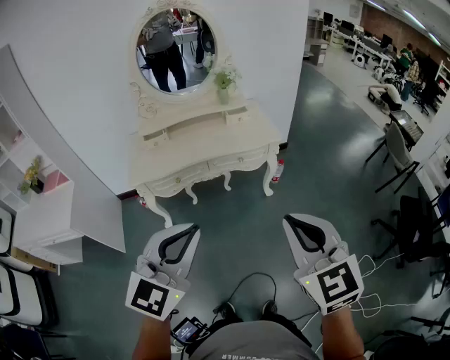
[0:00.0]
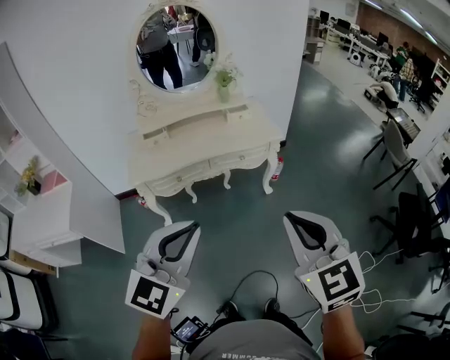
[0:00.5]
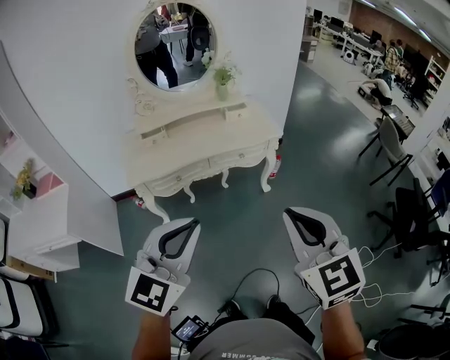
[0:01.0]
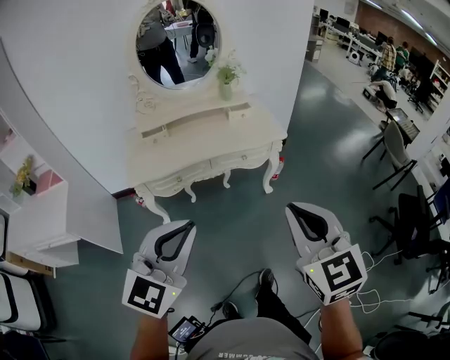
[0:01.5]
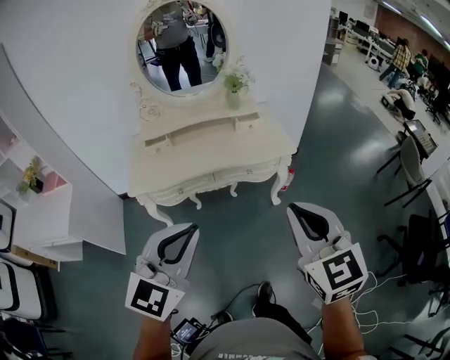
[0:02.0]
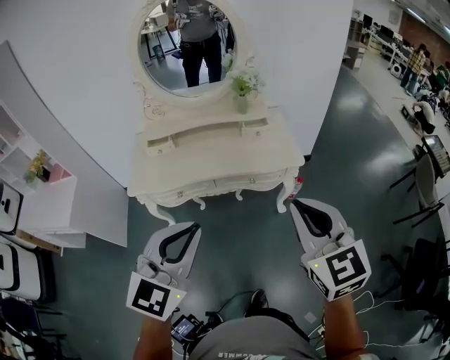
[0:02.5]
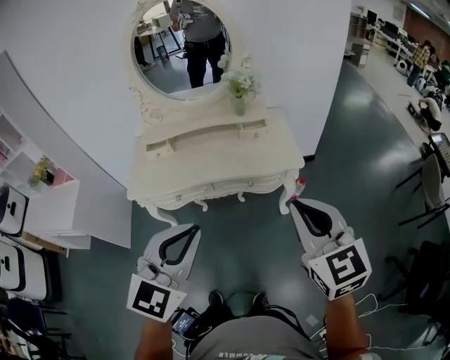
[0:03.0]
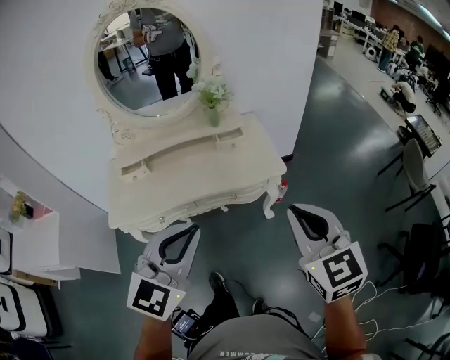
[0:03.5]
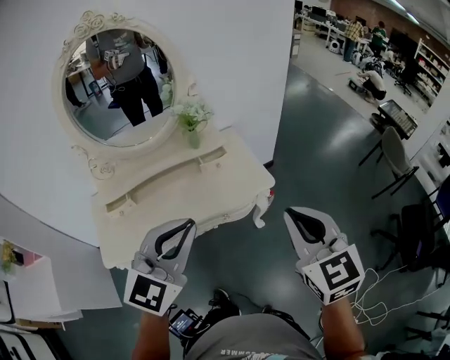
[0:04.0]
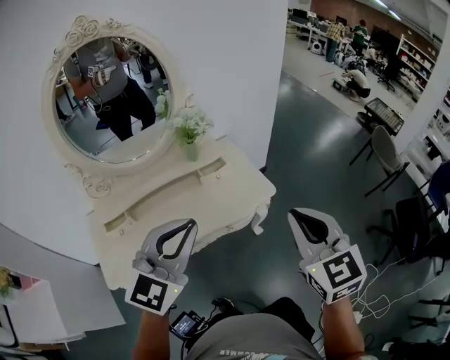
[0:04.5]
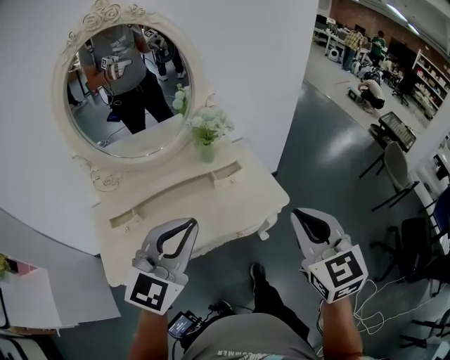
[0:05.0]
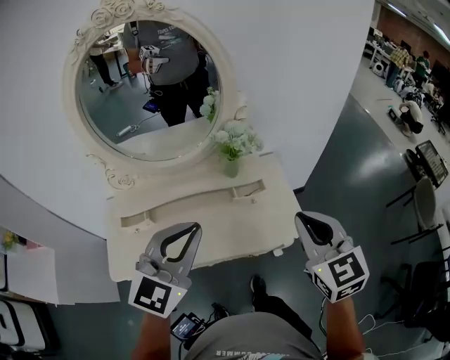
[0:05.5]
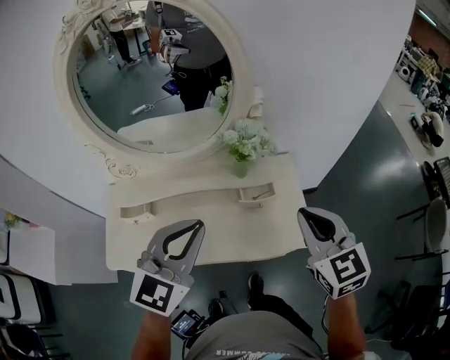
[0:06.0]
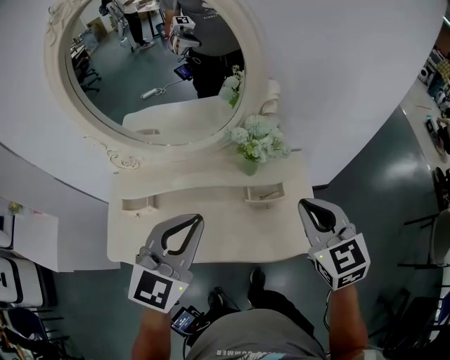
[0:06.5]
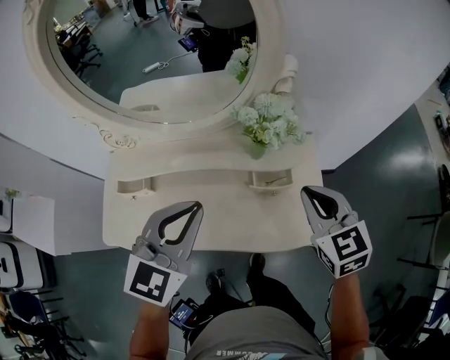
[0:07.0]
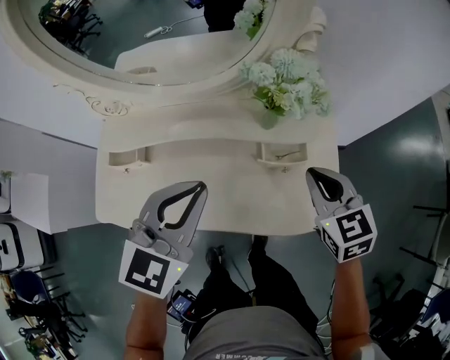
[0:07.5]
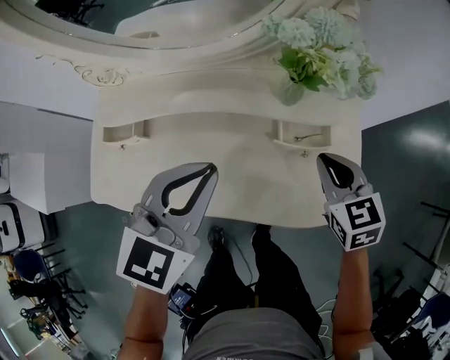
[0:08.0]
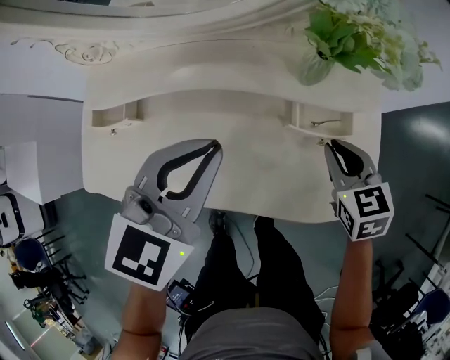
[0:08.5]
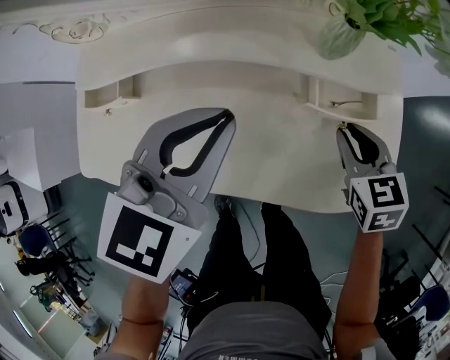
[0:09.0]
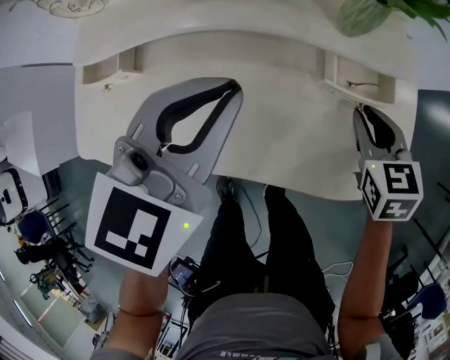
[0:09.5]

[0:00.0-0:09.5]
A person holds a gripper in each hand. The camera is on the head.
0:00.0 to 0:02.0: The grippers both shift forward by about 15 cm.
0:02.0 to 0:04.0: Both grippers move forward, some 25 cm.
0:04.0 to 0:05.5: The right gripper shifts roughly 20 cm forward; the left gripper shifts some 20 cm forward and to the left.
0:05.5 to 0:07.5: Both grippers travel together downward and forward, roughly 25 cm. The right gripper swivels about 20 degrees.
0:07.5 to 0:09.5: Both grippers travel together downward, approximately 15 cm.

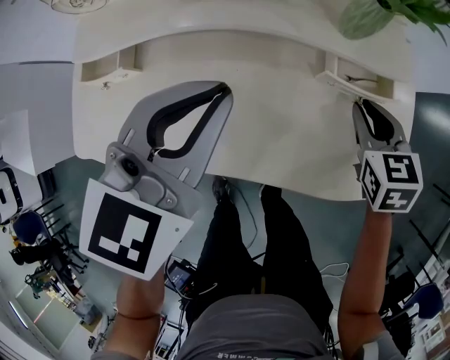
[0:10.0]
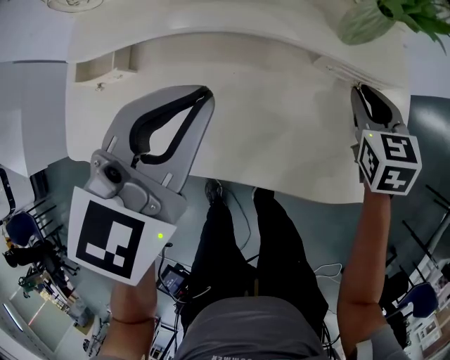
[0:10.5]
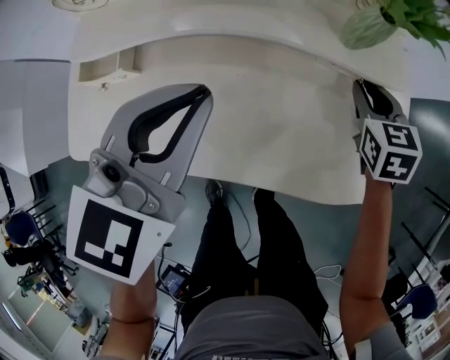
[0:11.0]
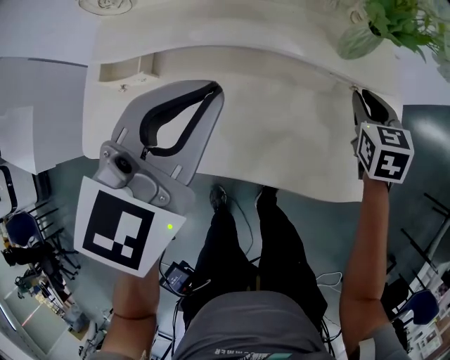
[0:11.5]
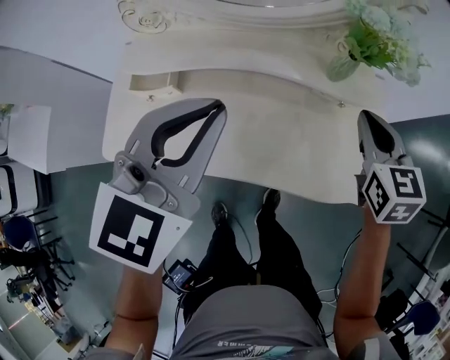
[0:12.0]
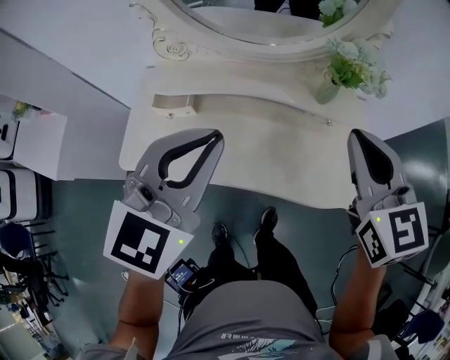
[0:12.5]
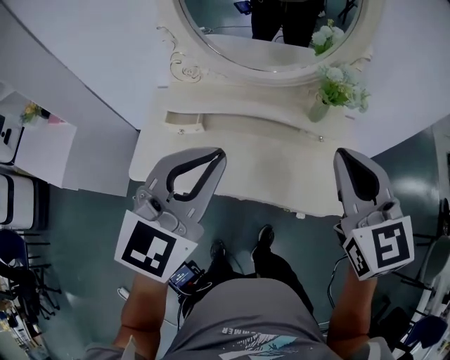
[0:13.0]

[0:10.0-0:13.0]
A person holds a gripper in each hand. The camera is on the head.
0:10.0 to 0:11.5: The left gripper goes about 5 cm upward. Meanwhile the right gripper changes place by approximately 5 cm.
0:11.5 to 0:13.0: The right gripper moves upward and backward, about 40 cm, and turns by some 30 degrees. The left gripper moves upward and backward, approximately 25 cm.

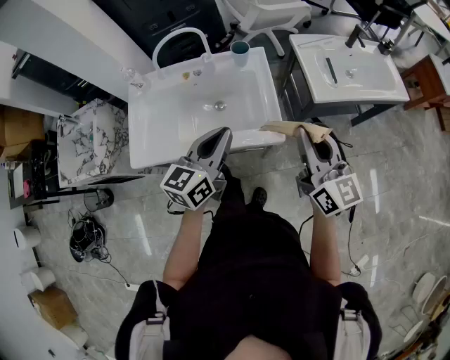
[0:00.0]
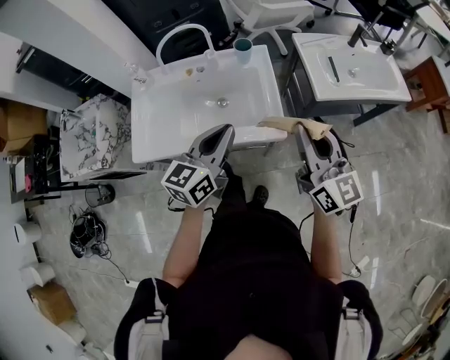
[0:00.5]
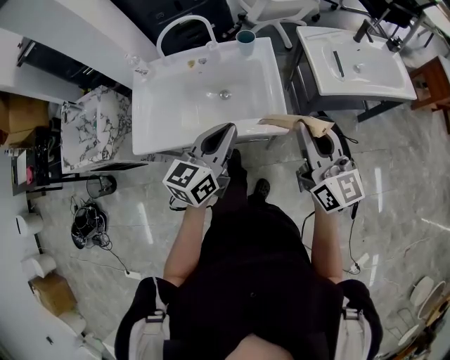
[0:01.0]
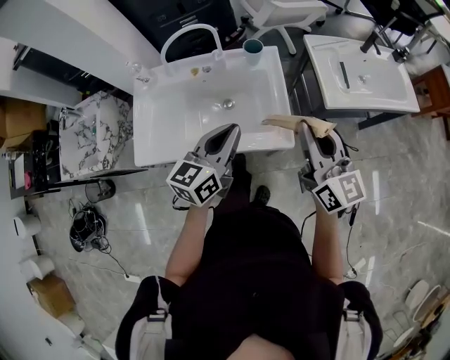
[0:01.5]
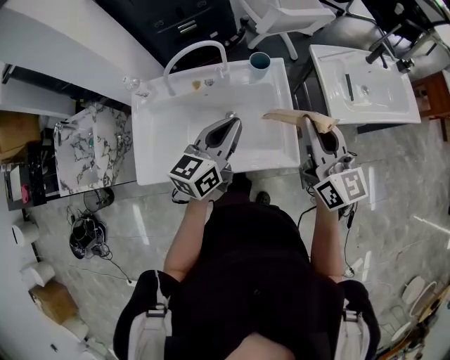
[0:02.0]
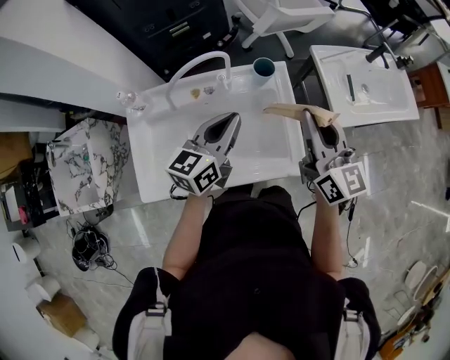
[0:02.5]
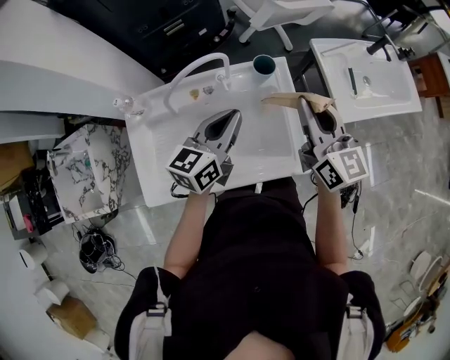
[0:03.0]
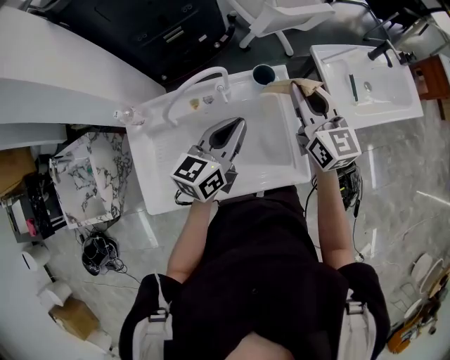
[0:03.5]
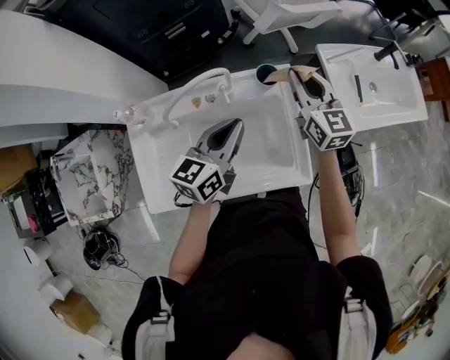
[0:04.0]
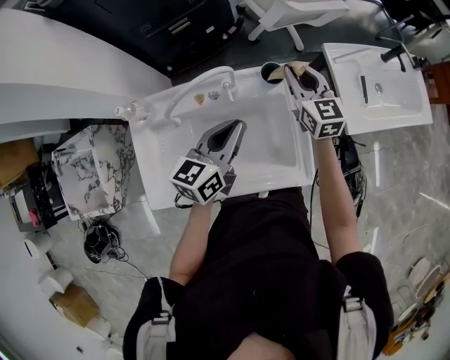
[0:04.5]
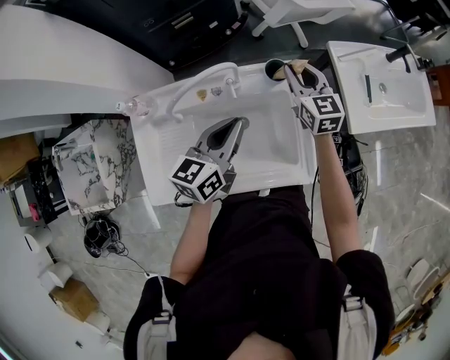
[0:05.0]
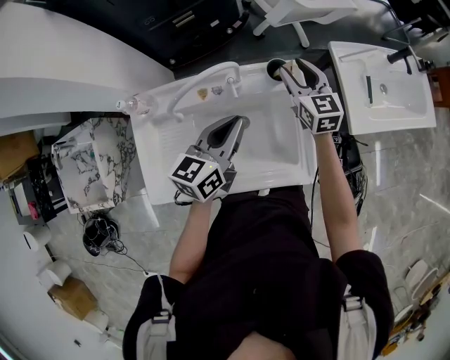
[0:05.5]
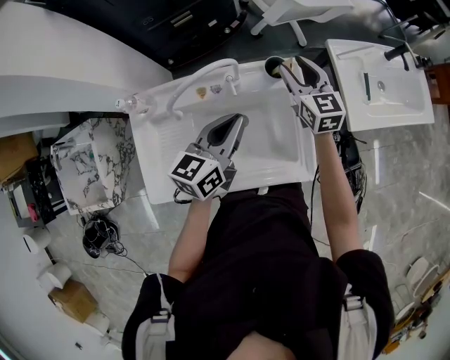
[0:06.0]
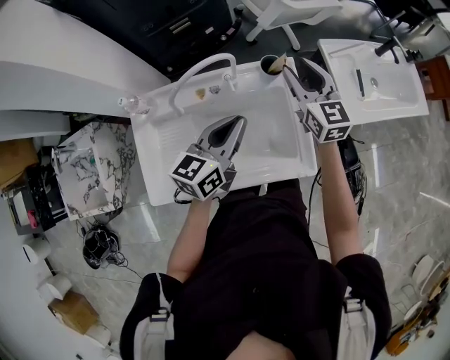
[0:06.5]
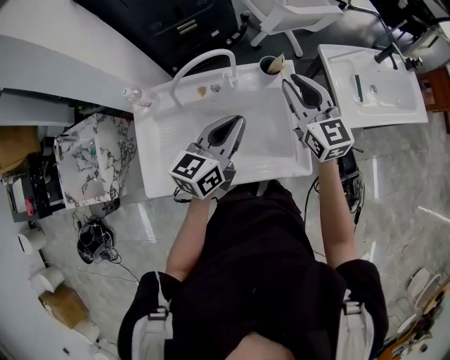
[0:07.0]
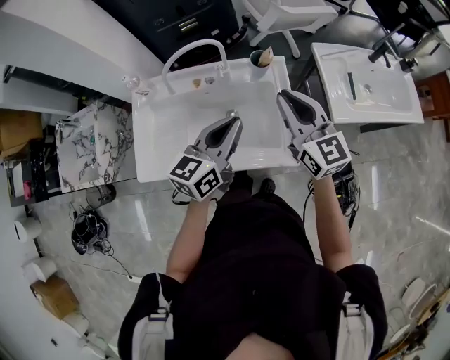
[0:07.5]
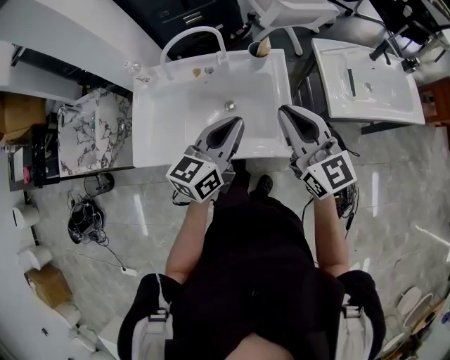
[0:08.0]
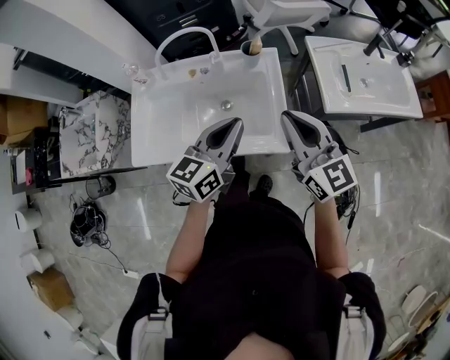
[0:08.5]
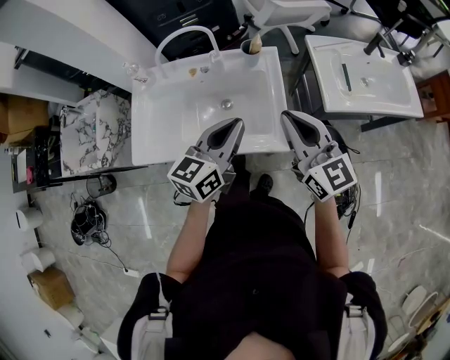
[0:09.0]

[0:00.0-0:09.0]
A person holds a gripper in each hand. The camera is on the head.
0:00.0 to 0:02.0: The right gripper goes approximately 15 cm forward and to the left. The left gripper shifts about 15 cm forward.
0:02.0 to 0:04.5: The right gripper moves forward and downward, roughly 25 cm, and changes its angle by some 20 degrees, while the left gripper travels forward by roughly 10 cm.
0:04.5 to 0:07.0: The left gripper moves roughly 5 cm; the right gripper is displaced backward and upward by some 15 cm, and opens, then closes again.
0:07.0 to 0:09.0: The left gripper heads backward and to the right, covering about 15 cm. Meanwhile the right gripper travels backward by approximately 20 cm.

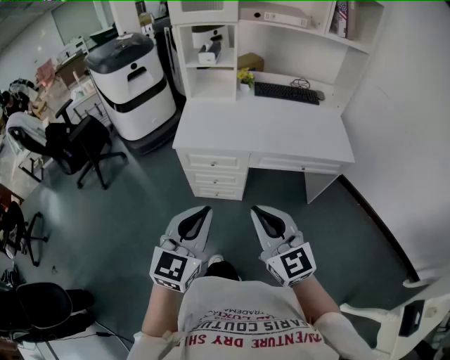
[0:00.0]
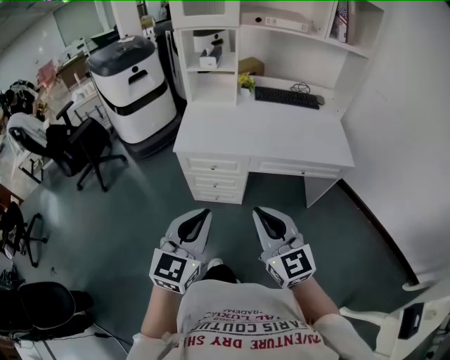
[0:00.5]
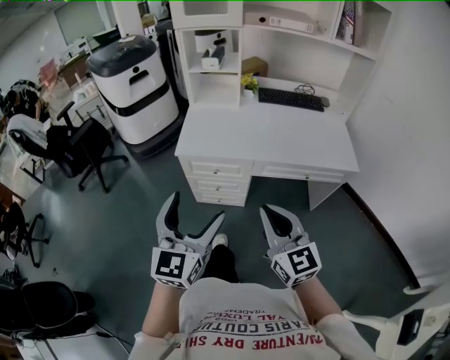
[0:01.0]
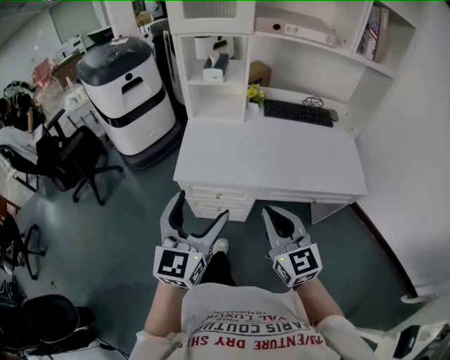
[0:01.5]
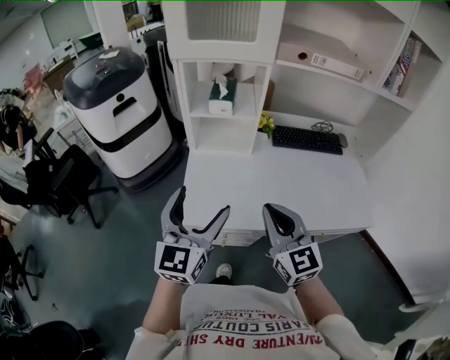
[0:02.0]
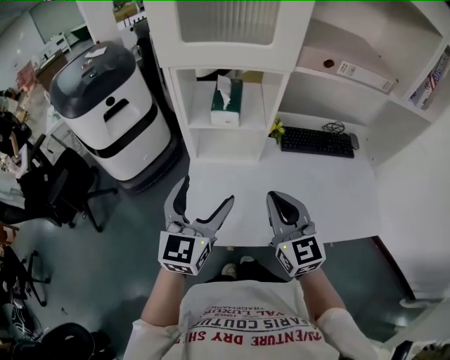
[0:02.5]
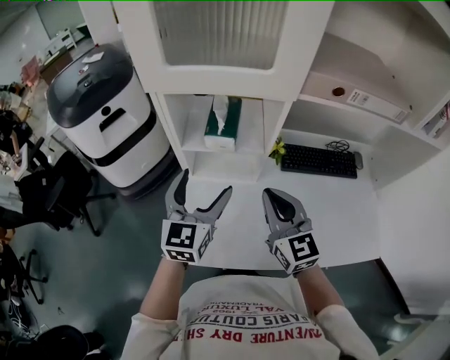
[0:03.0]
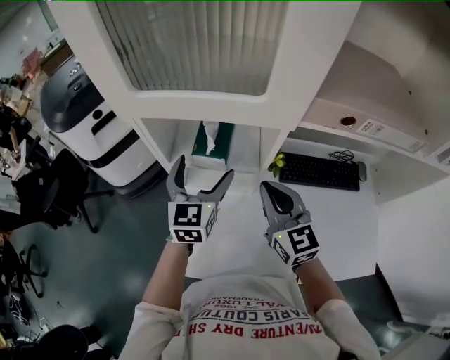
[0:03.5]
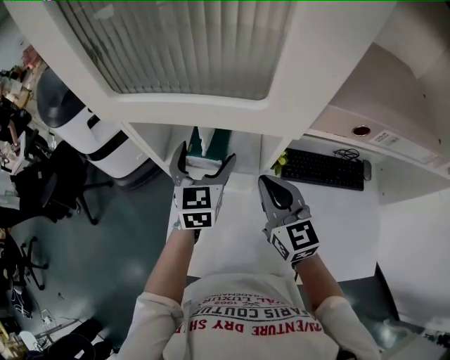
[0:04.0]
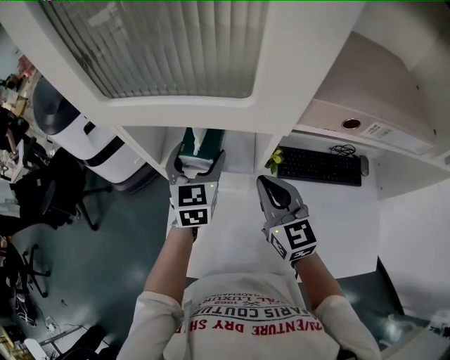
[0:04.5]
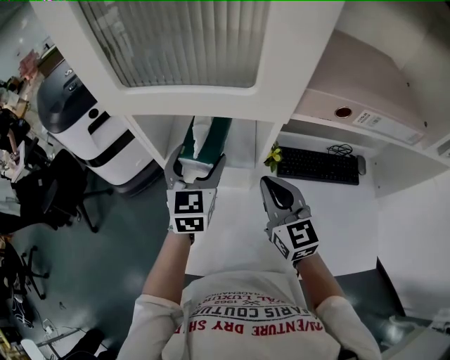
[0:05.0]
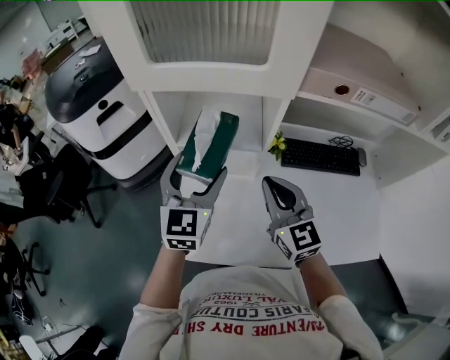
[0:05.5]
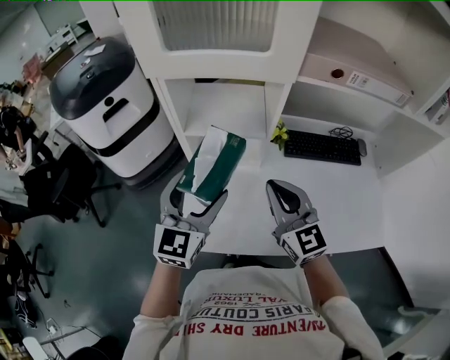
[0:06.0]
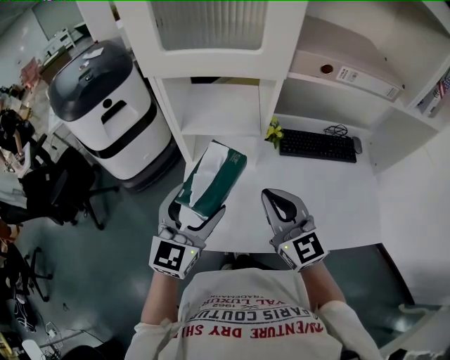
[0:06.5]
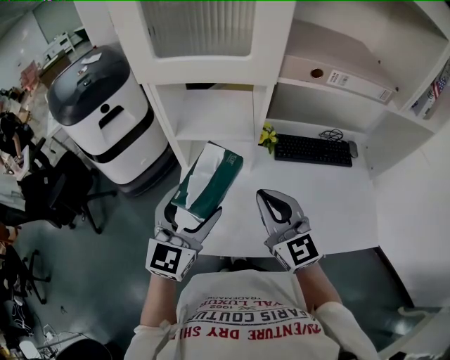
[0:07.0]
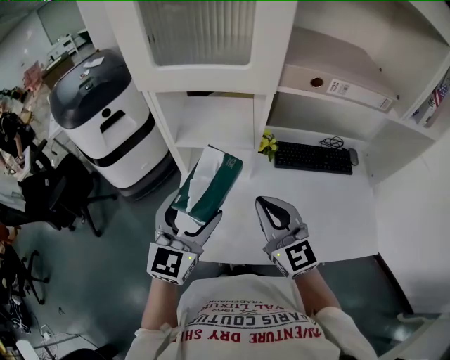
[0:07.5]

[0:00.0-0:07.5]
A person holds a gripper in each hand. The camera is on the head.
0:00.0 to 0:02.0: The two grippers go approximately 40 cm forward. The left gripper opens its fingers.
0:02.0 to 0:04.0: The two grippers go roughly 40 cm forward. The left gripper turns by about 20 degrees.
0:04.0 to 0:05.5: The right gripper is displaced backward by roughly 10 cm. Meanwhile the left gripper is displaced backward and upward by some 15 cm.
0:05.5 to 0:07.5: Both grippers travel together backward, about 10 cm.
